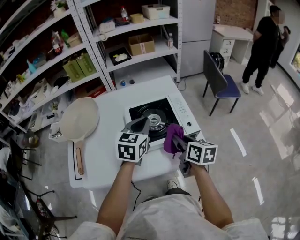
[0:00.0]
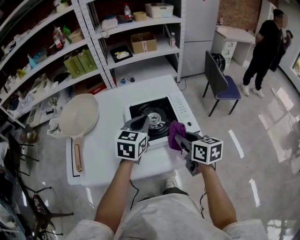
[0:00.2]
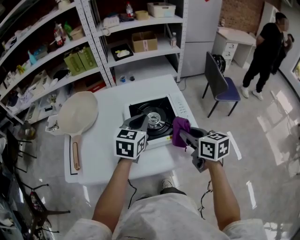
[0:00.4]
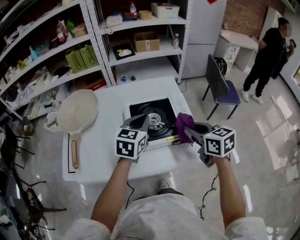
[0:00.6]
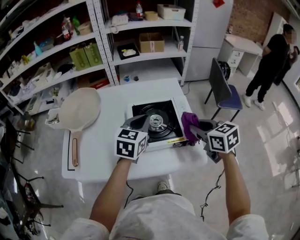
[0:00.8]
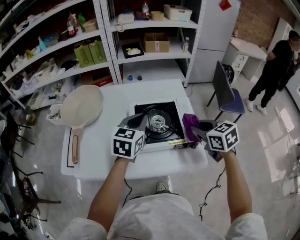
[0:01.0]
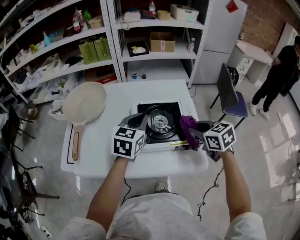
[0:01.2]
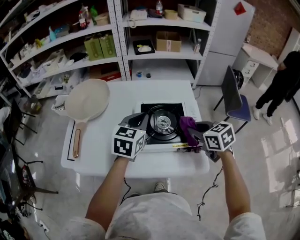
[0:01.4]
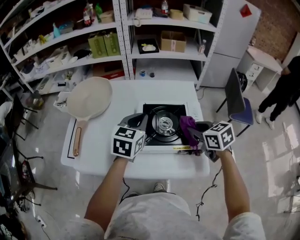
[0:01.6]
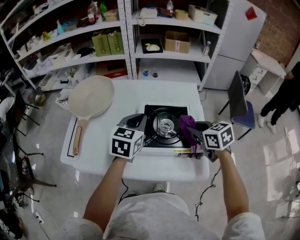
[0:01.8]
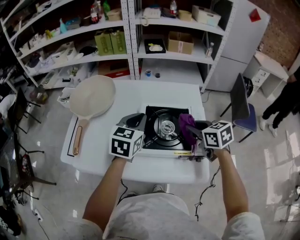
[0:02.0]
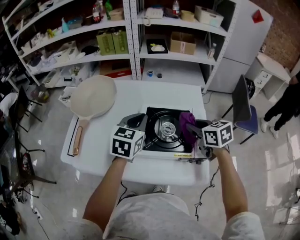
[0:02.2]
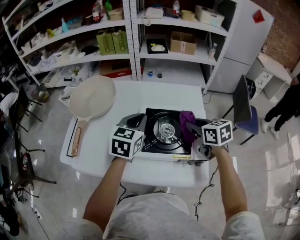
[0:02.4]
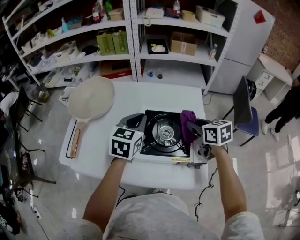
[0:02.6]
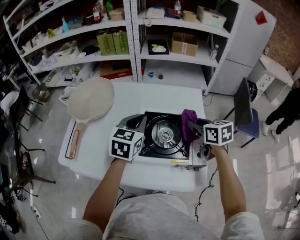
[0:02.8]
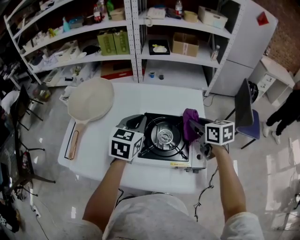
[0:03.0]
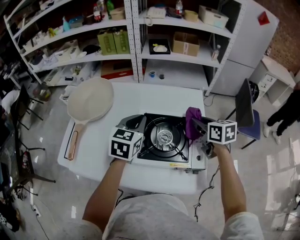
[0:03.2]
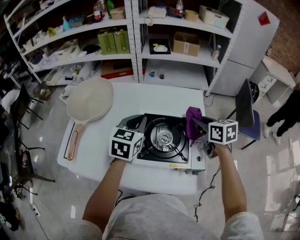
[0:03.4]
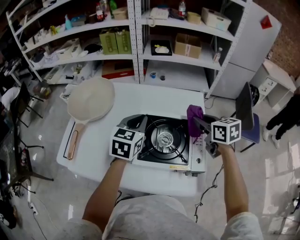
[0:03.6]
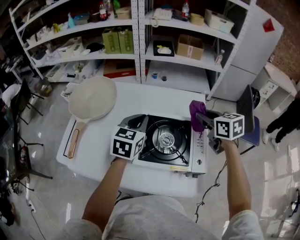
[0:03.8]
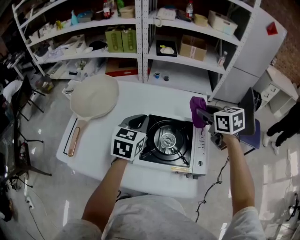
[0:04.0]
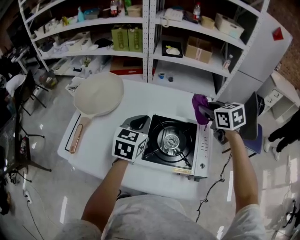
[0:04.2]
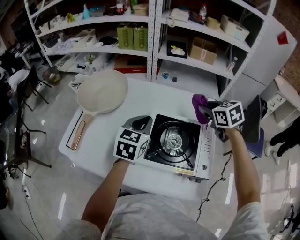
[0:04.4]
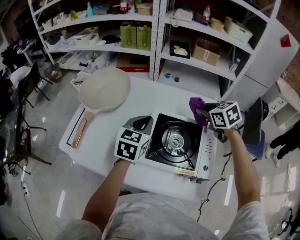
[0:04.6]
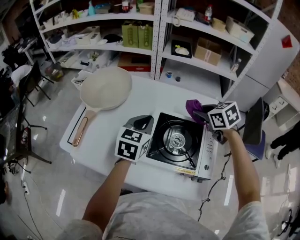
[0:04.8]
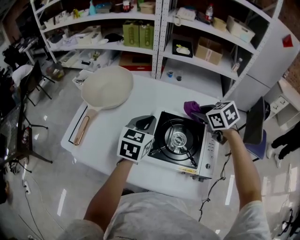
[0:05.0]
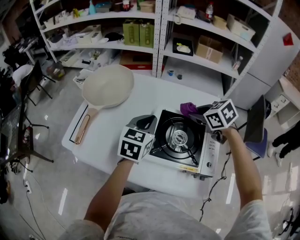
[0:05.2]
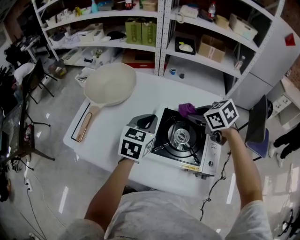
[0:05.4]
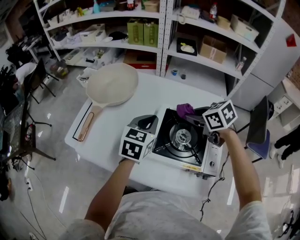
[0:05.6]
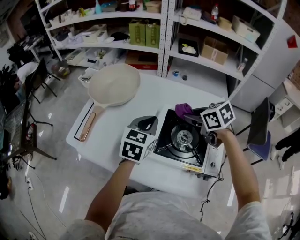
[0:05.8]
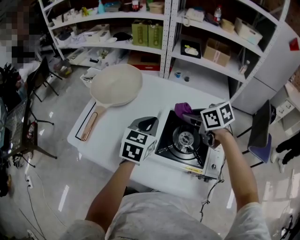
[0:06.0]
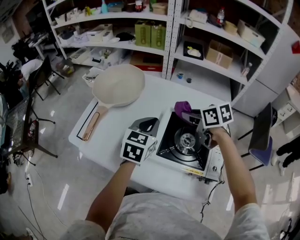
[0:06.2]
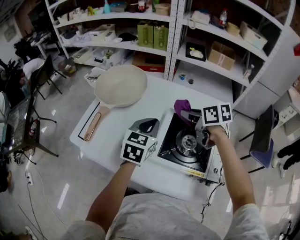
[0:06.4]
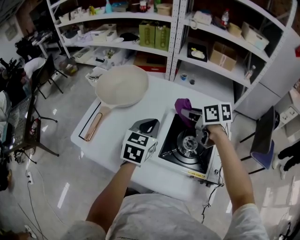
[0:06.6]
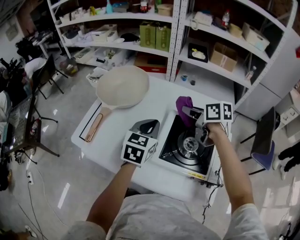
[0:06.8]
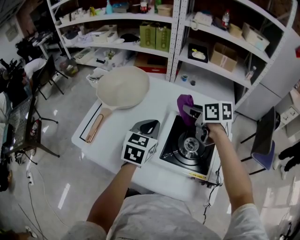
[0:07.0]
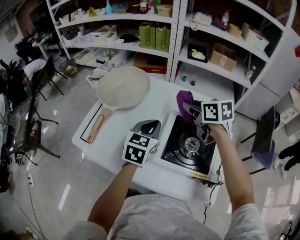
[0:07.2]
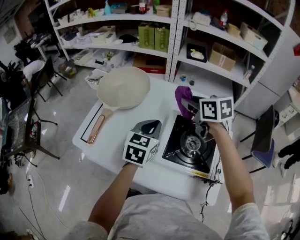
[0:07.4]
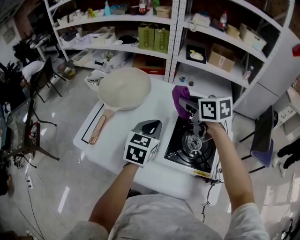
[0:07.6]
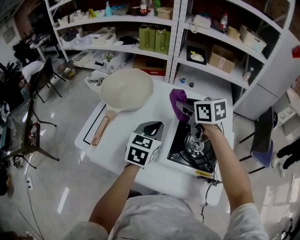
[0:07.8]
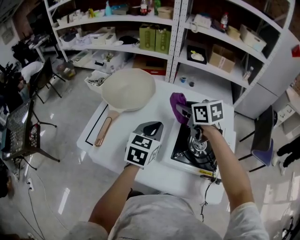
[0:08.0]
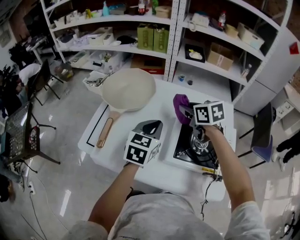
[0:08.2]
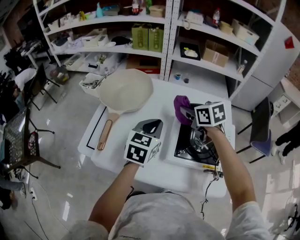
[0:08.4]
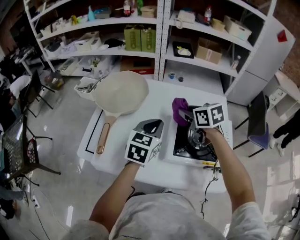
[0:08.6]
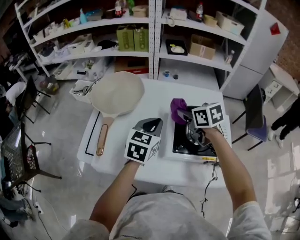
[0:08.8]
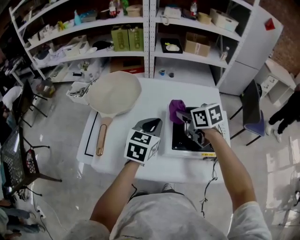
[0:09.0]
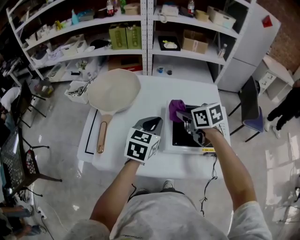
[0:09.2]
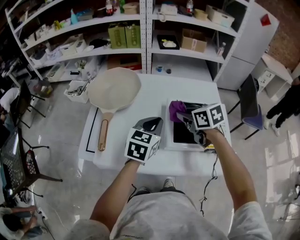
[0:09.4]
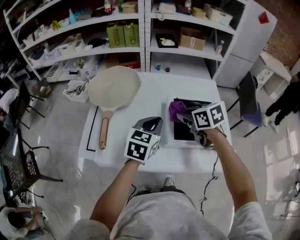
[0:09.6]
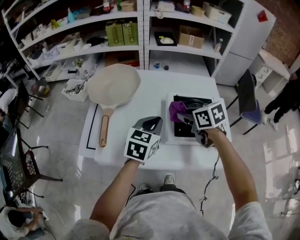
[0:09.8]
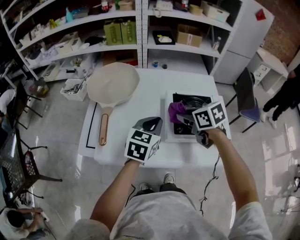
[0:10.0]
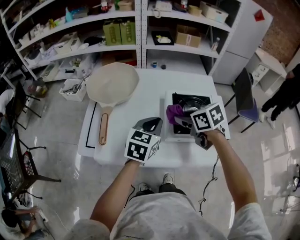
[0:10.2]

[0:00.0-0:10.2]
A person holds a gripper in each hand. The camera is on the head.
0:00.0 to 0:01.4: The left gripper ends up about 5 cm from where it was. The right gripper travels forward by some 5 cm, and swivels roughly 50 degrees.
0:01.4 to 0:03.0: The left gripper is displaced forward by about 5 cm. The right gripper goes approximately 10 cm forward.
0:03.0 to 0:04.4: The right gripper heads forward, covering about 10 cm, and changes its angle by about 30 degrees.
0:04.4 to 0:05.8: The right gripper goes some 15 cm to the left, and swivels approximately 20 degrees.
0:05.8 to 0:07.2: The right gripper heads forward, covering roughly 5 cm.
0:07.2 to 0:08.8: The right gripper shifts by about 5 cm.
0:08.8 to 0:10.2: The left gripper travels backward by roughly 5 cm. Meanwhile the right gripper goes approximately 10 cm backward.

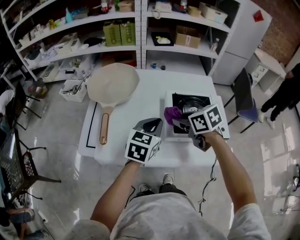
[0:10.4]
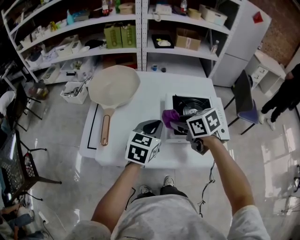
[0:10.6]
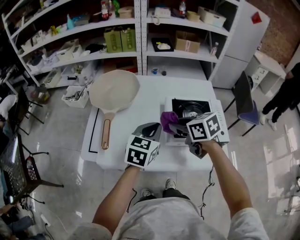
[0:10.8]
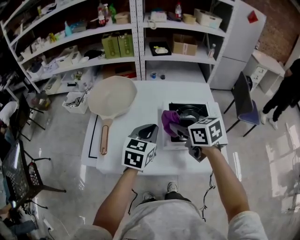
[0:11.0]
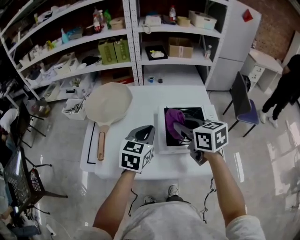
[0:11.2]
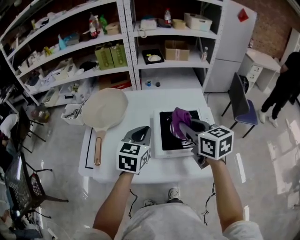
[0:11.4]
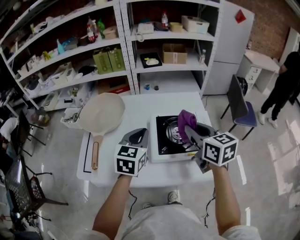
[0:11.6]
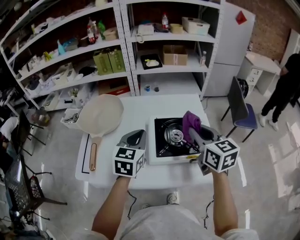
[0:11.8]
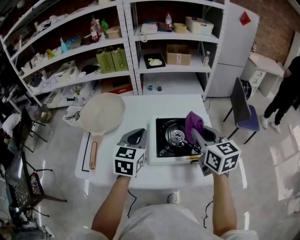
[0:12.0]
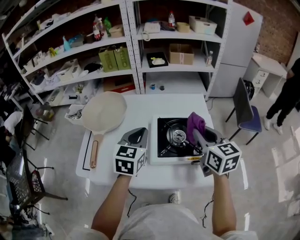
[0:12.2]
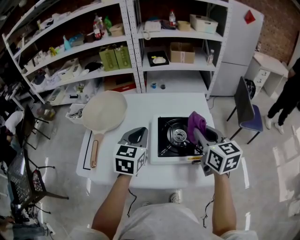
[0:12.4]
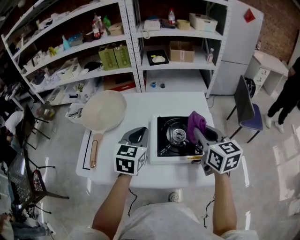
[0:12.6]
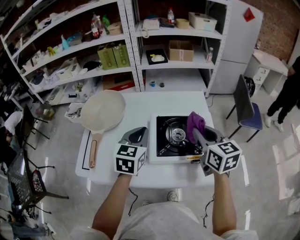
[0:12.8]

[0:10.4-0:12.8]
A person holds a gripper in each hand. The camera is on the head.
0:10.4 to 0:11.6: The right gripper shifts approximately 15 cm to the right and upward, and changes its angle by roughly 30 degrees. Meanwhile the left gripper shifts about 5 cm upward.
0:11.6 to 0:12.8: The right gripper changes place by some 5 cm.

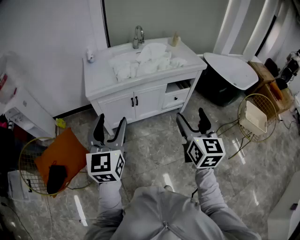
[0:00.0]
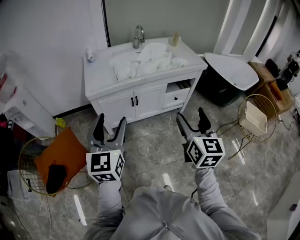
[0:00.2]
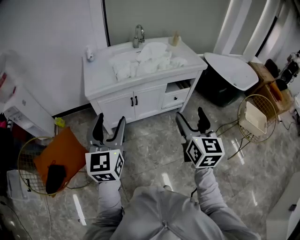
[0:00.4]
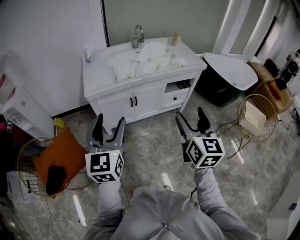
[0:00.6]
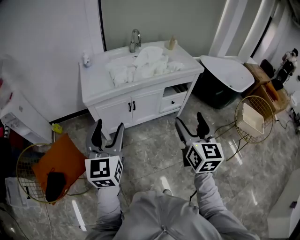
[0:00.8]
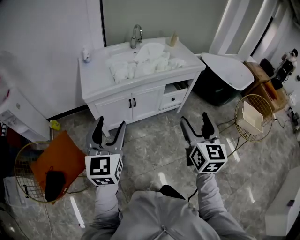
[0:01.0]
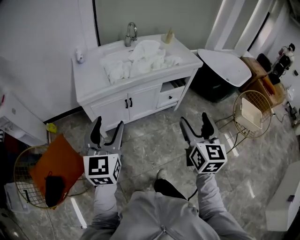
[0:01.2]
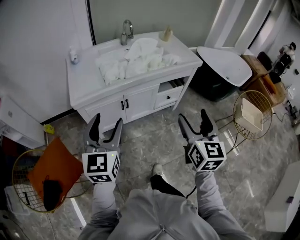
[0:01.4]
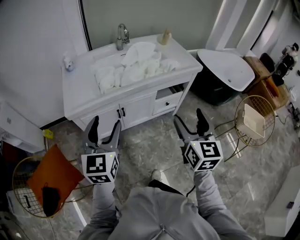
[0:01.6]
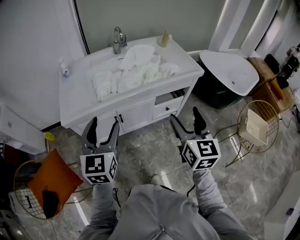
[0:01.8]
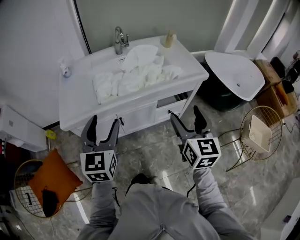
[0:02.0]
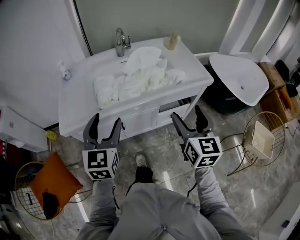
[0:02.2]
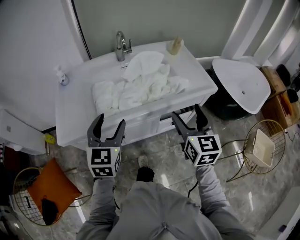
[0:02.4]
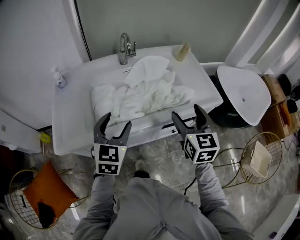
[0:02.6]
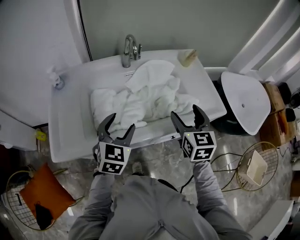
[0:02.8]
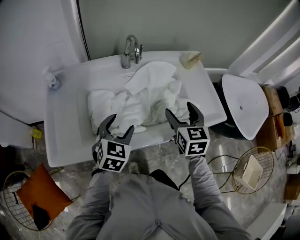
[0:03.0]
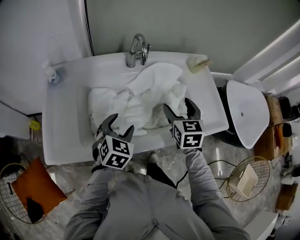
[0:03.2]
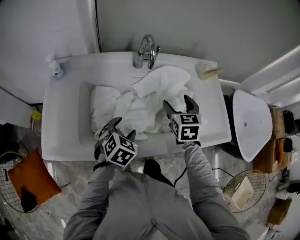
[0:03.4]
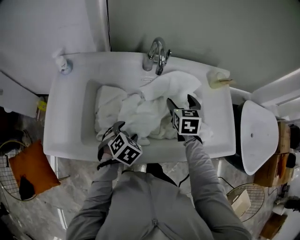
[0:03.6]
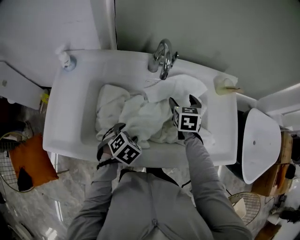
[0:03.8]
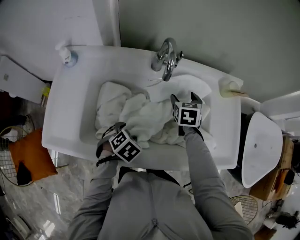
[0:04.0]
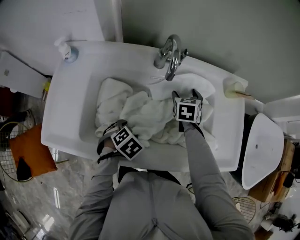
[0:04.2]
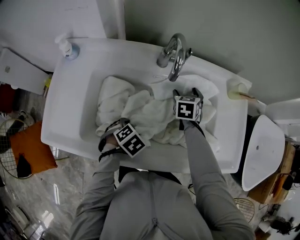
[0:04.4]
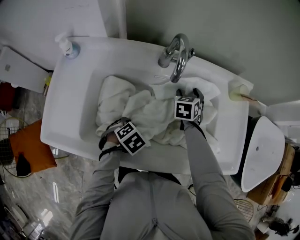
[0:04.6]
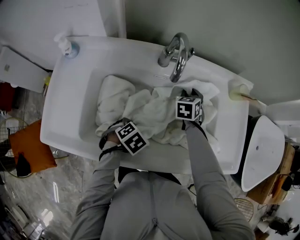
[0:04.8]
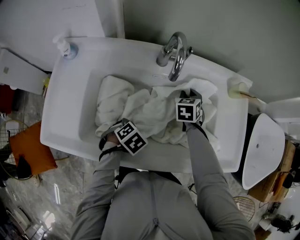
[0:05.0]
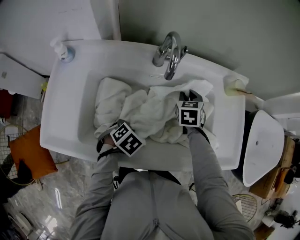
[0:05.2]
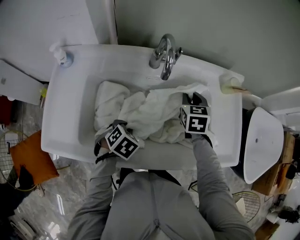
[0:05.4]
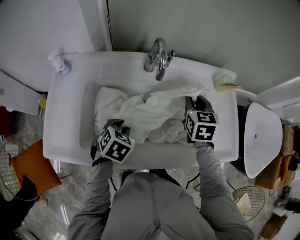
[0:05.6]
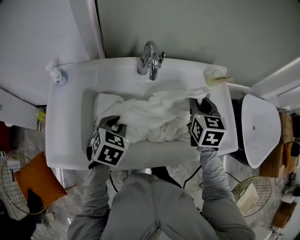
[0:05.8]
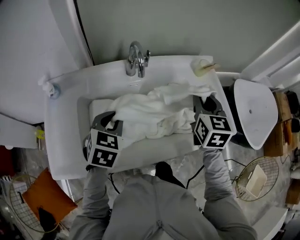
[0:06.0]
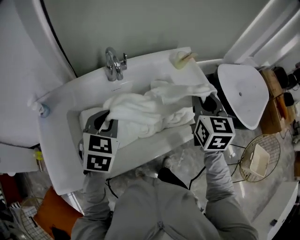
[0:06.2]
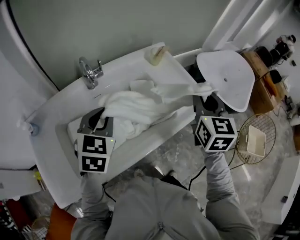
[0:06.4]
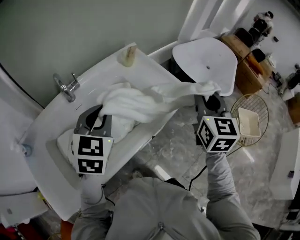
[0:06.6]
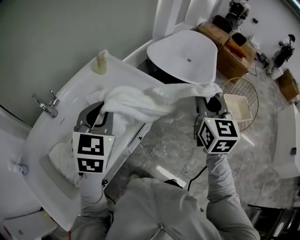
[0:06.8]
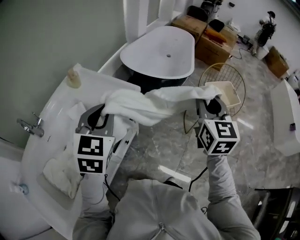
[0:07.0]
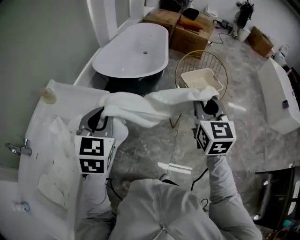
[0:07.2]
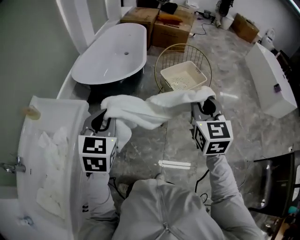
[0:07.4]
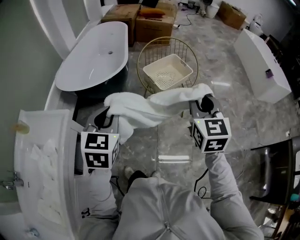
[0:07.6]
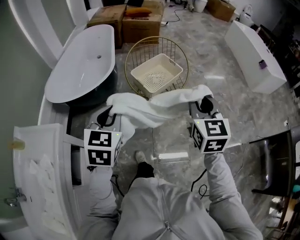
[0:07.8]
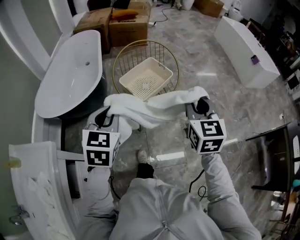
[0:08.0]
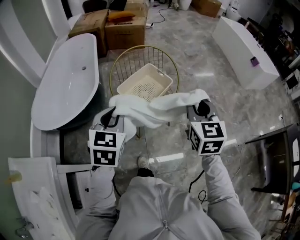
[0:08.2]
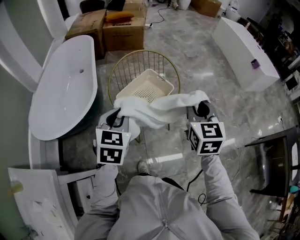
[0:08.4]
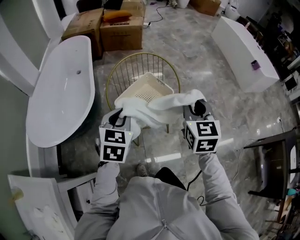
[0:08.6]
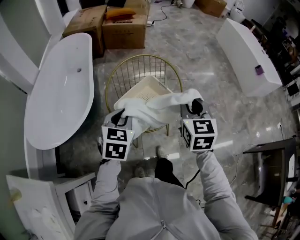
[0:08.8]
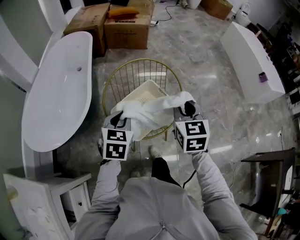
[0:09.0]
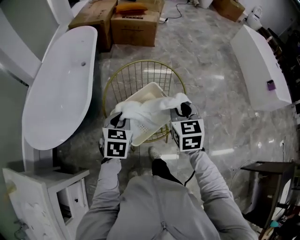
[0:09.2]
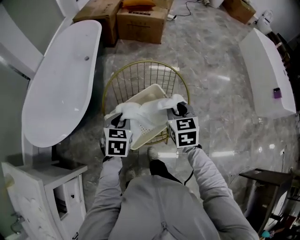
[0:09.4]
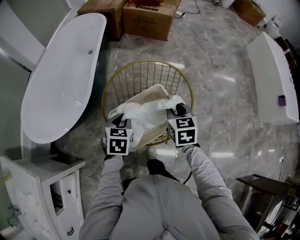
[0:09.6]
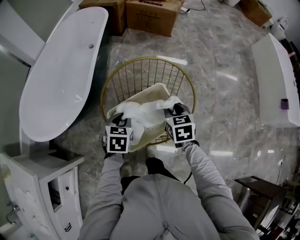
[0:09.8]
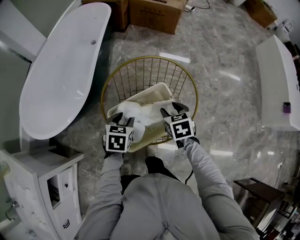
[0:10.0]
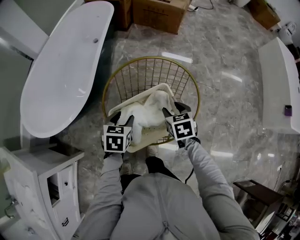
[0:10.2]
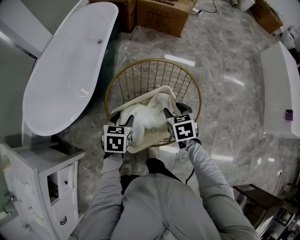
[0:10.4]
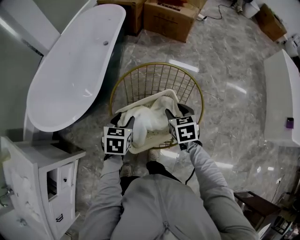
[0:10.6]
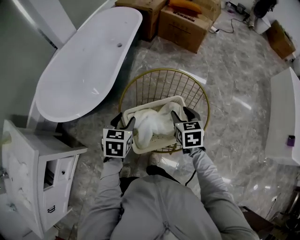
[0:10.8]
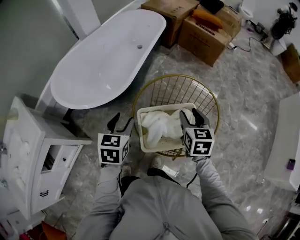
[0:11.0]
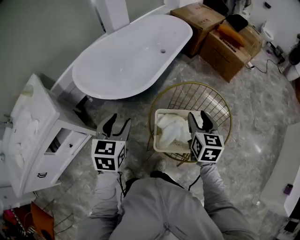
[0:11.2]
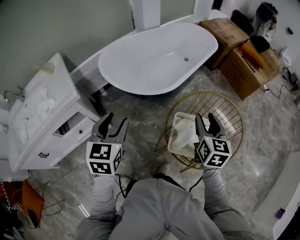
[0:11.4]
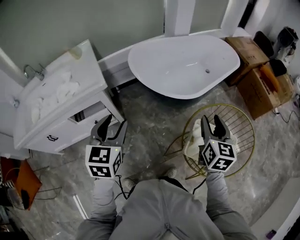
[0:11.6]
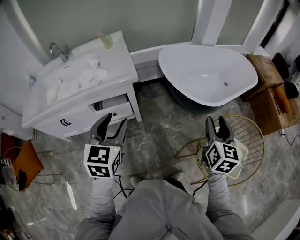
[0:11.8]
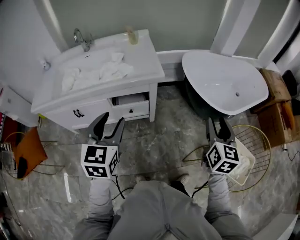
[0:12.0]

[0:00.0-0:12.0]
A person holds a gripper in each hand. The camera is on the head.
0:00.0 to 0:01.6: The two grippers go roughly 15 cm forward.
0:01.6 to 0:03.0: The grippers both shift forward by roughly 40 cm. The left gripper changes its angle by some 30 degrees. Meanwhile the right gripper swivels roughly 20 degrees.
0:03.0 to 0:04.4: The right gripper moves roughly 35 cm, and rotates about 30 degrees, while the left gripper goes some 20 cm downward, and tips its fingers downward by about 40 degrees.
0:04.4 to 0:06.0: The two grippers go roughly 25 cm upward. The left gripper points its fingers approximately 40 degrees further upward, and closes its fingers. The right gripper swivels roughly 30 degrees, and closes.
0:06.0 to 0:07.6: The two grippers travel together, approximately 80 cm. The right gripper changes its angle by roughly 70 degrees. Meanwhile the left gripper rotates some 70 degrees.
0:07.6 to 0:09.0: The two grippers go approximately 40 cm forward.
0:09.0 to 0:10.4: The right gripper shifts about 25 cm downward and forward, turns by approximately 40 degrees, and opens. The left gripper shifts about 15 cm downward and forward, swivels roughly 30 degrees, and opens.
0:10.4 to 0:12.0: The pair of grippers is taken approximately 60 cm. The right gripper points its fingers roughly 40 degrees further upward; the left gripper angles its fingers upward, by some 30 degrees.
